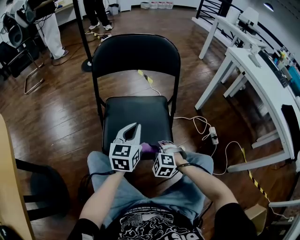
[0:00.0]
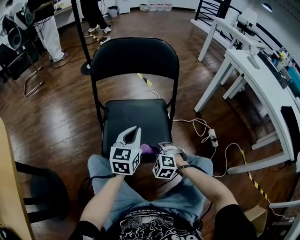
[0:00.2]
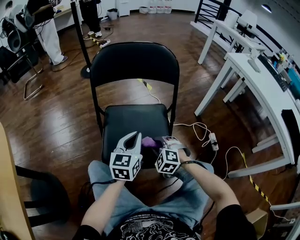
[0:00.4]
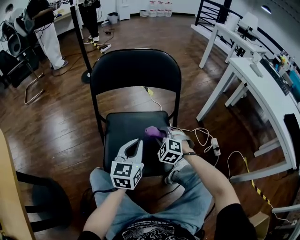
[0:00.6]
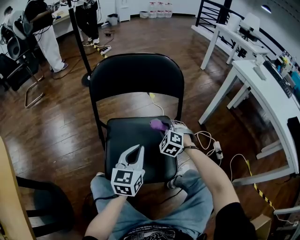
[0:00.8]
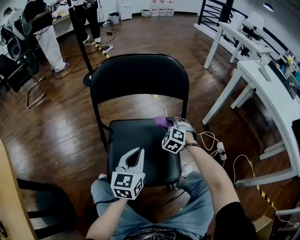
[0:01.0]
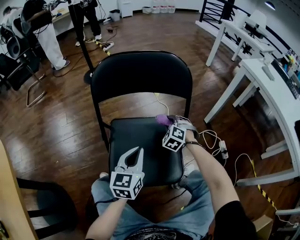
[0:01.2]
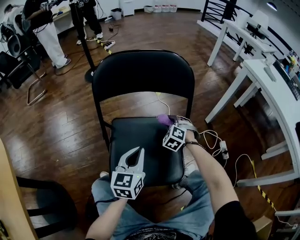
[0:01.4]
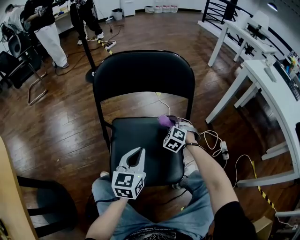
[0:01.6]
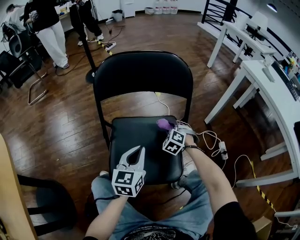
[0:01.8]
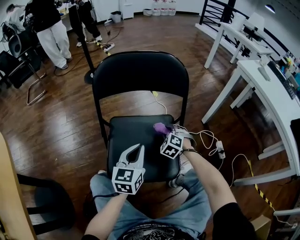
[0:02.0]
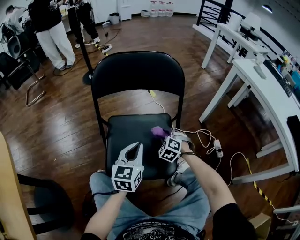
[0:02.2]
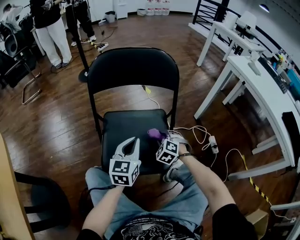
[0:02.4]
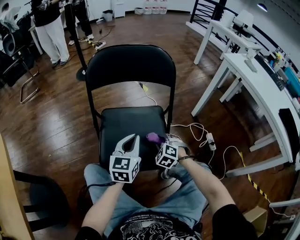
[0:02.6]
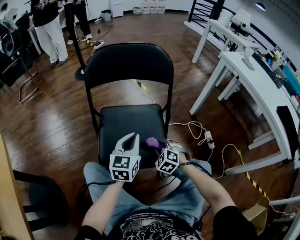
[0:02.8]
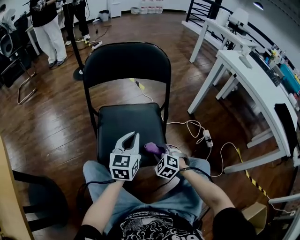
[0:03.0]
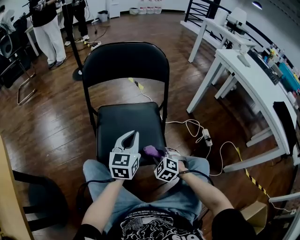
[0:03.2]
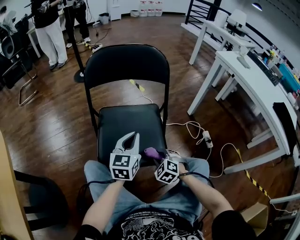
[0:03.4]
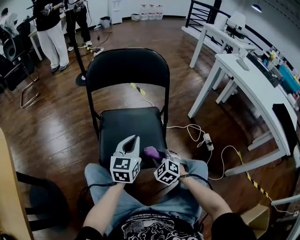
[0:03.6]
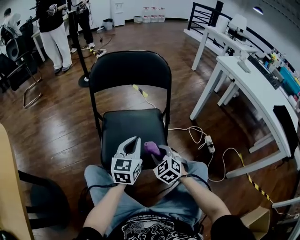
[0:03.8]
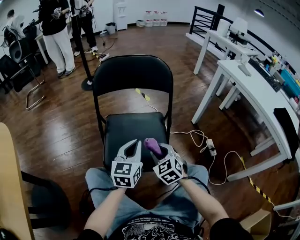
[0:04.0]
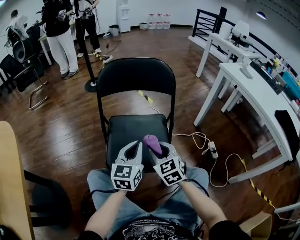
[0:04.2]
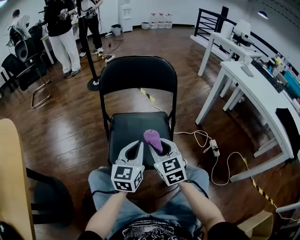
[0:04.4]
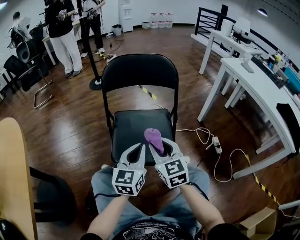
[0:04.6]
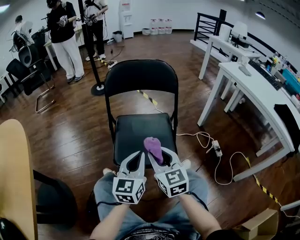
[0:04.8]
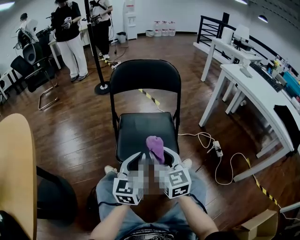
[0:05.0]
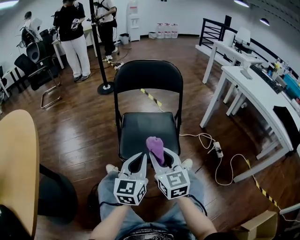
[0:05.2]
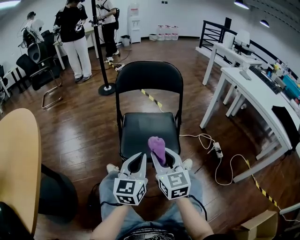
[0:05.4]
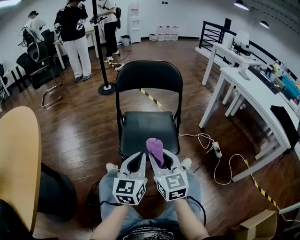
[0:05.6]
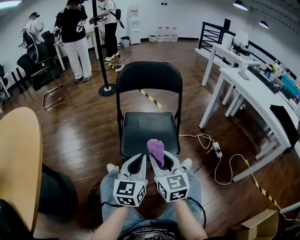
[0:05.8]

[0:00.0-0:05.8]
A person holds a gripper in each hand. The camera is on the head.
0:00.0 to 0:01.4: The left gripper moves about 5 cm, while the right gripper shifts about 30 cm forward, and turns by approximately 20 degrees.
0:01.4 to 0:02.8: The right gripper moves backward, approximately 20 cm. The left gripper changes place by roughly 5 cm.
0:02.8 to 0:04.4: The left gripper is displaced backward and upward by about 10 cm. Meanwhile the right gripper goes about 20 cm upward, and points its fingers about 30 degrees further upward.
0:04.4 to 0:05.8: The two grippers go roughly 15 cm backward.

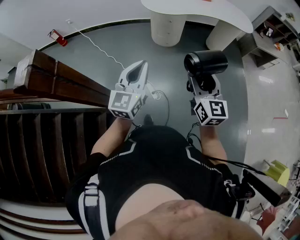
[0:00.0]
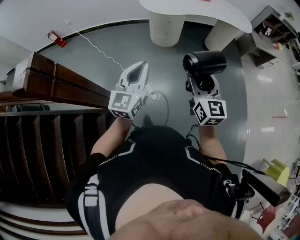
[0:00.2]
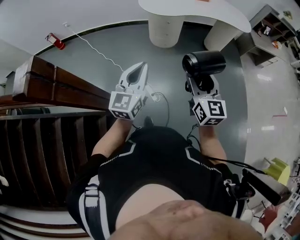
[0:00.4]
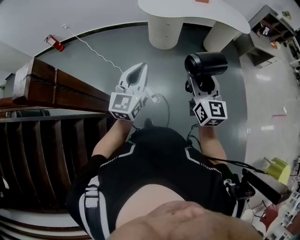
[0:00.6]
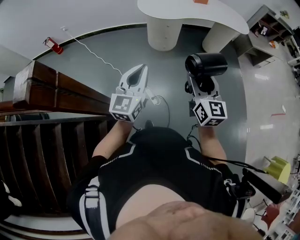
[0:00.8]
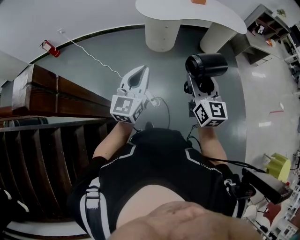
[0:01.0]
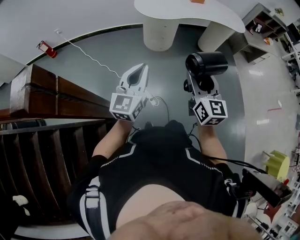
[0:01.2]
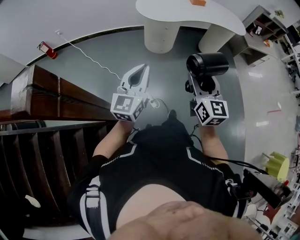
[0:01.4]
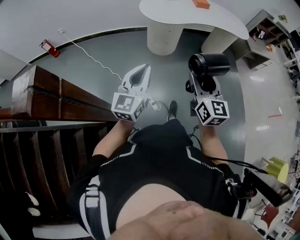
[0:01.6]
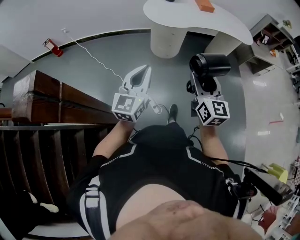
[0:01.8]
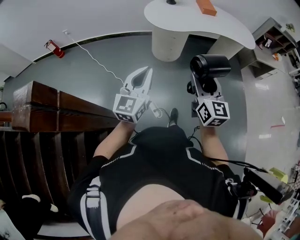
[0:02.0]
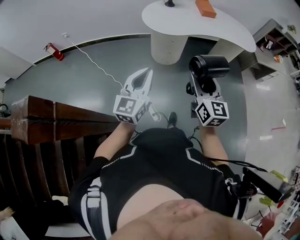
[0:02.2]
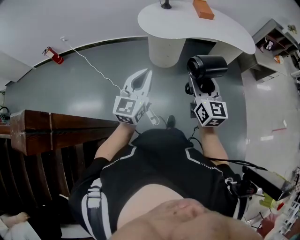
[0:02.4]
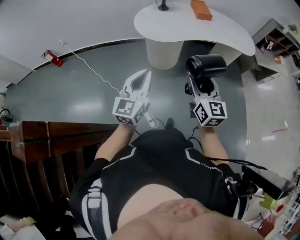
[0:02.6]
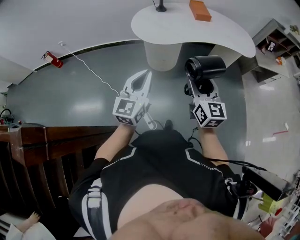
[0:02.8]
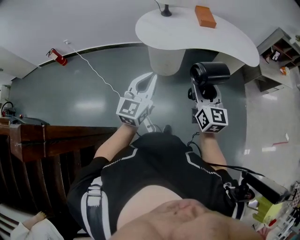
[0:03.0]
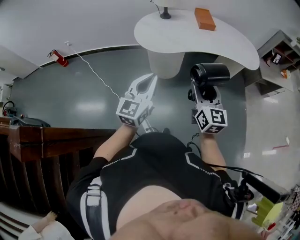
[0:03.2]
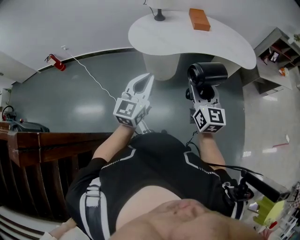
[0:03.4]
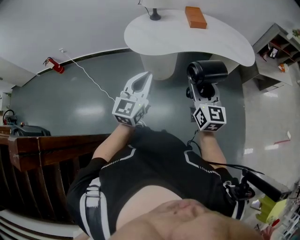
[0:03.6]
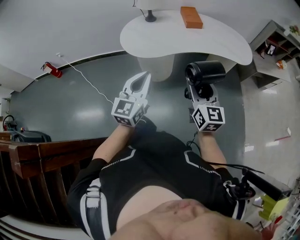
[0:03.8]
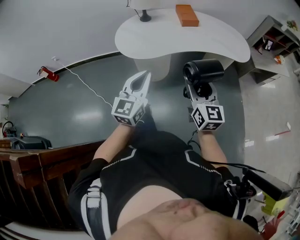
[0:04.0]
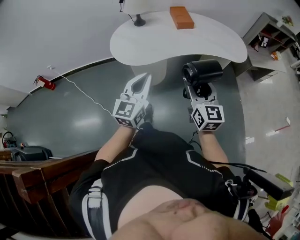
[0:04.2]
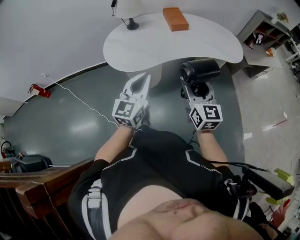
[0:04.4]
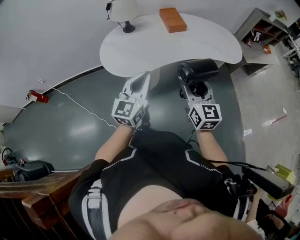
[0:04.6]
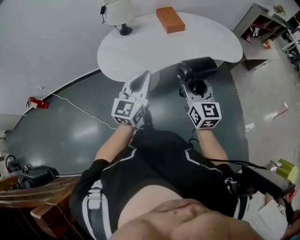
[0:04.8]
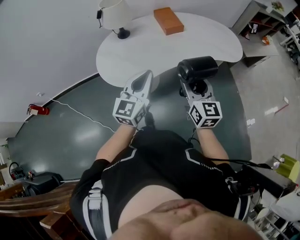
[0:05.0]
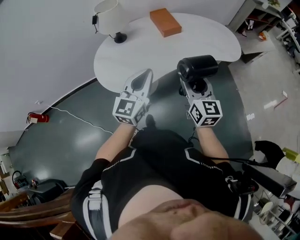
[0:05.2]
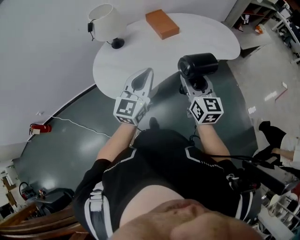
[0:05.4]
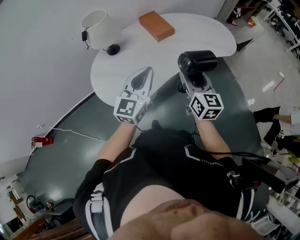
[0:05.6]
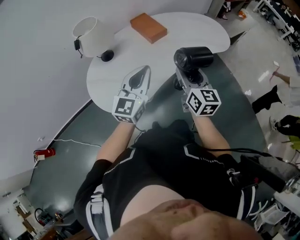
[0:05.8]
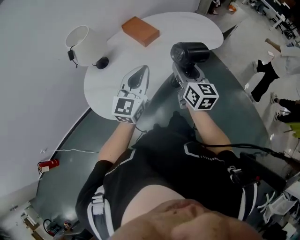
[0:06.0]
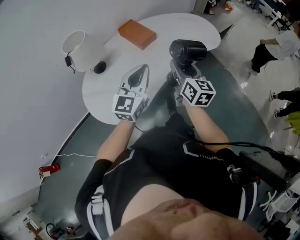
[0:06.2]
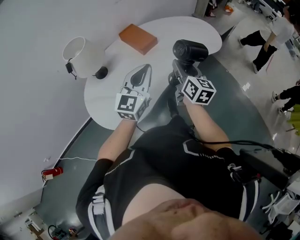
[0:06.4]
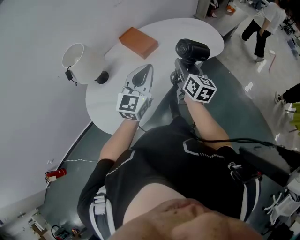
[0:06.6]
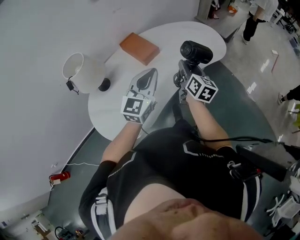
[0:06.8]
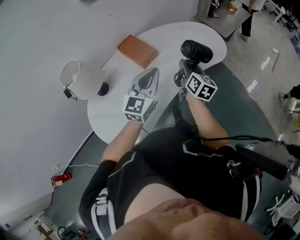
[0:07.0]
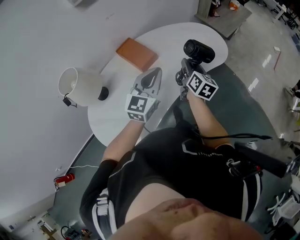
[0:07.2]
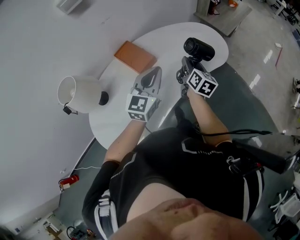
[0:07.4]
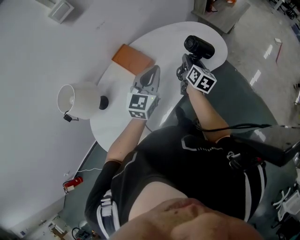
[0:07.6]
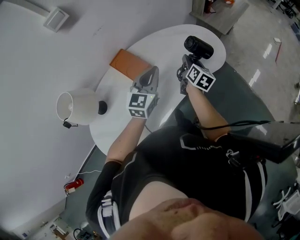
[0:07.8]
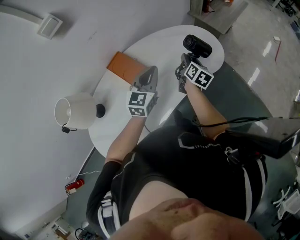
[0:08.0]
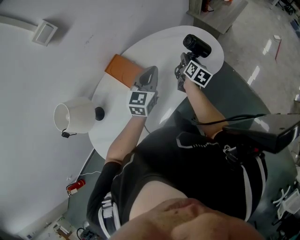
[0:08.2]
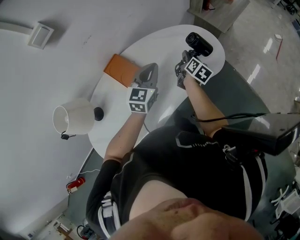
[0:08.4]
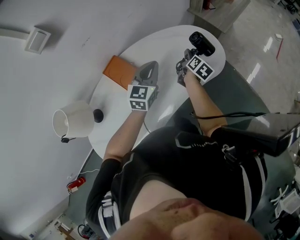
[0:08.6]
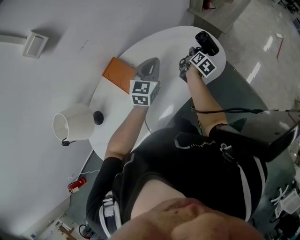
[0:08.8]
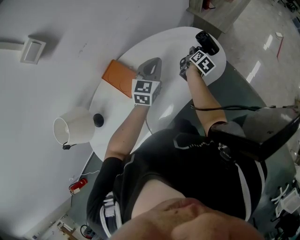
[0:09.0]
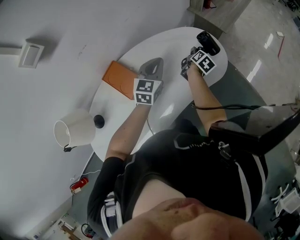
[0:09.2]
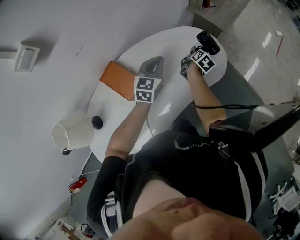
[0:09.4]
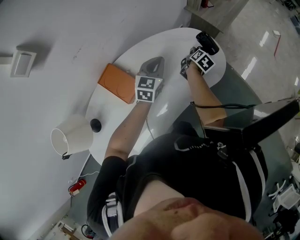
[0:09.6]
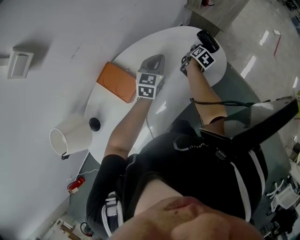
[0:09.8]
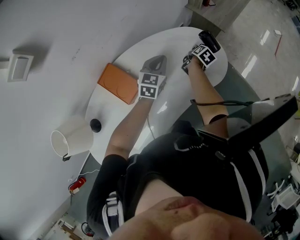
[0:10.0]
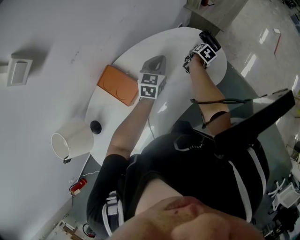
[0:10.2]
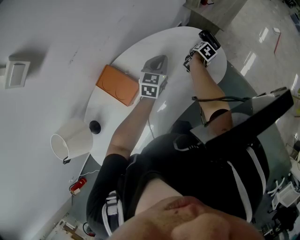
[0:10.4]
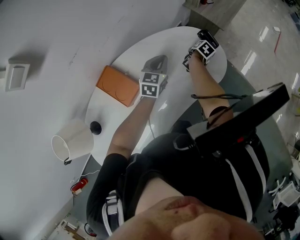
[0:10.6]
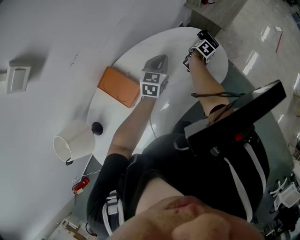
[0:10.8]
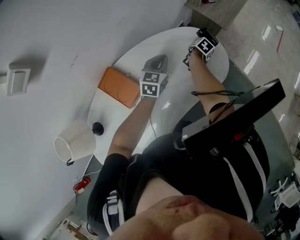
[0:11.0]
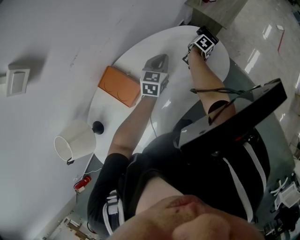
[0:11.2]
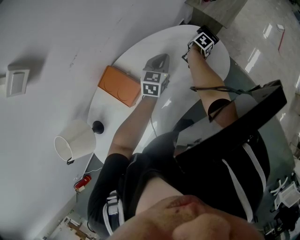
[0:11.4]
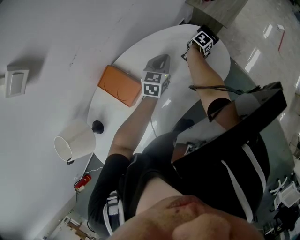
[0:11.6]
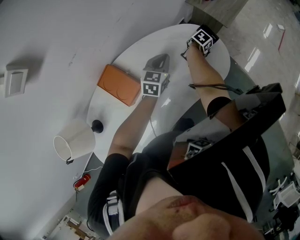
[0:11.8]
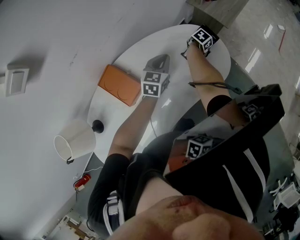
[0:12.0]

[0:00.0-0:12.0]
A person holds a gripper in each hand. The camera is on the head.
0:00.0 to 0:01.6: The two grippers go some 10 cm to the left and forward.
0:01.6 to 0:03.0: The two grippers go approximately 30 cm forward and to the right.
0:03.0 to 0:04.4: The two grippers go approximately 20 cm forward.
0:04.4 to 0:06.0: The right gripper changes place by approximately 25 cm, and swivels about 30 degrees; the left gripper moves about 25 cm, and rotates approximately 30 degrees.
0:06.0 to 0:07.6: Both grippers travel together forward, roughly 30 cm. The right gripper swivels approximately 30 degrees.
0:07.6 to 0:09.0: The right gripper is displaced forward and downward by roughly 20 cm, and changes its angle by approximately 30 degrees. The left gripper is displaced forward by some 20 cm.
0:09.0 to 0:10.4: The left gripper moves forward and downward, approximately 10 cm. Meanwhile the right gripper goes approximately 10 cm downward and forward.
0:10.4 to 0:12.0: The grippers stay close to where they were, moving slightly.

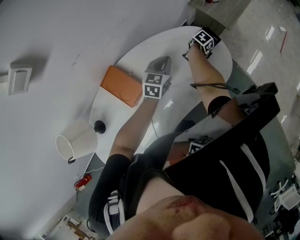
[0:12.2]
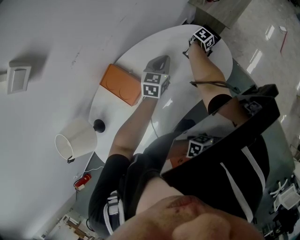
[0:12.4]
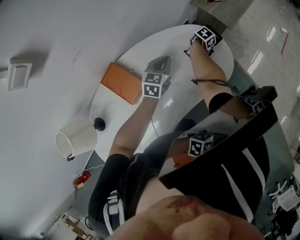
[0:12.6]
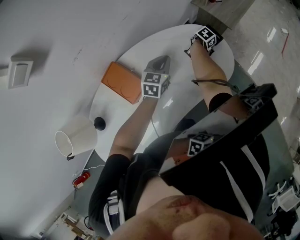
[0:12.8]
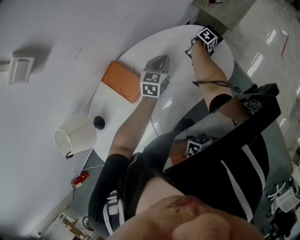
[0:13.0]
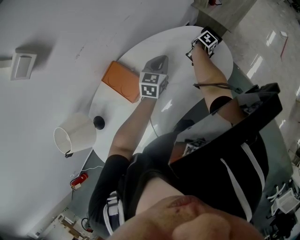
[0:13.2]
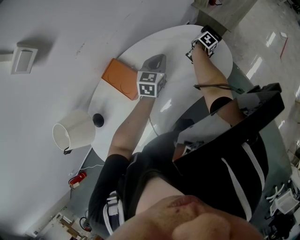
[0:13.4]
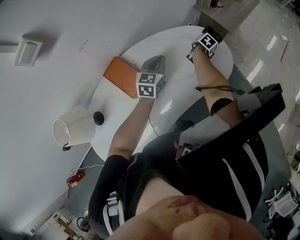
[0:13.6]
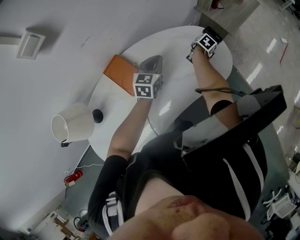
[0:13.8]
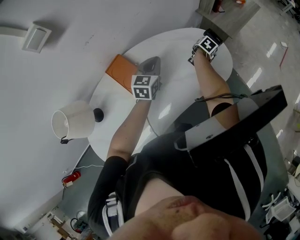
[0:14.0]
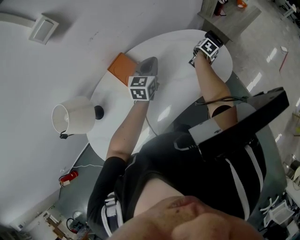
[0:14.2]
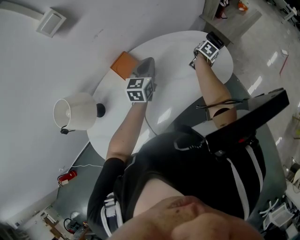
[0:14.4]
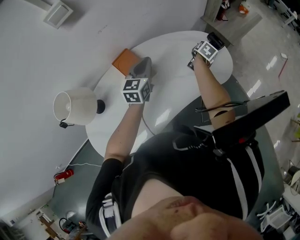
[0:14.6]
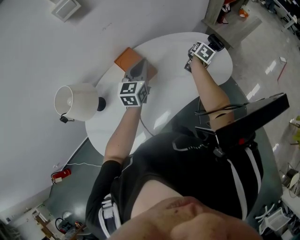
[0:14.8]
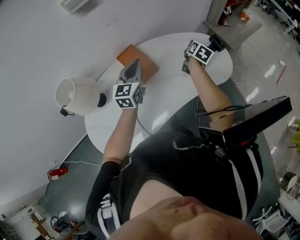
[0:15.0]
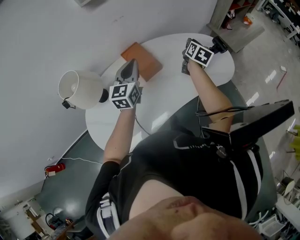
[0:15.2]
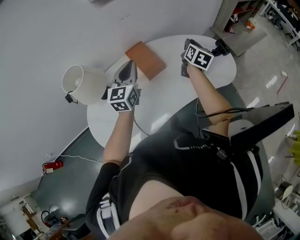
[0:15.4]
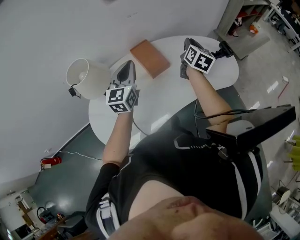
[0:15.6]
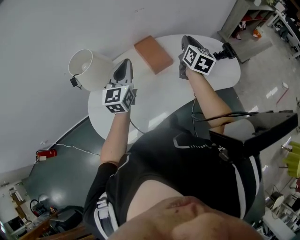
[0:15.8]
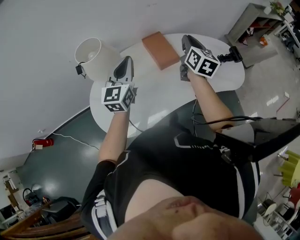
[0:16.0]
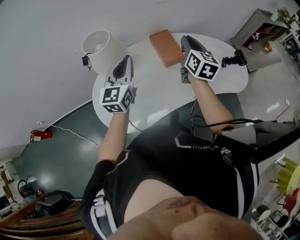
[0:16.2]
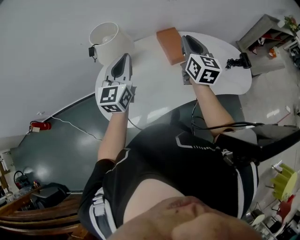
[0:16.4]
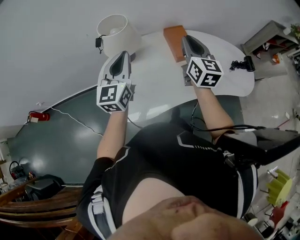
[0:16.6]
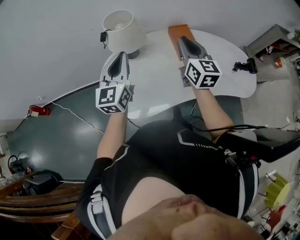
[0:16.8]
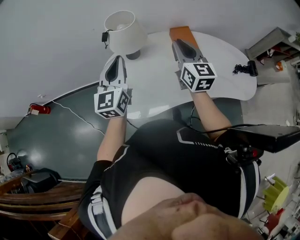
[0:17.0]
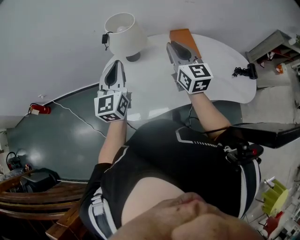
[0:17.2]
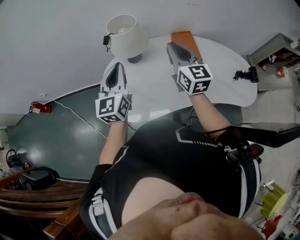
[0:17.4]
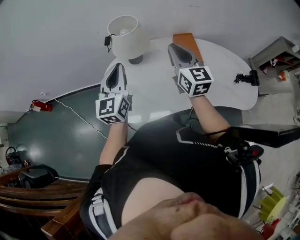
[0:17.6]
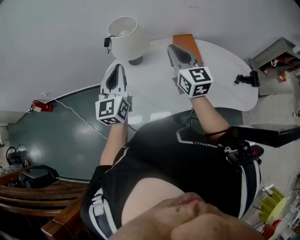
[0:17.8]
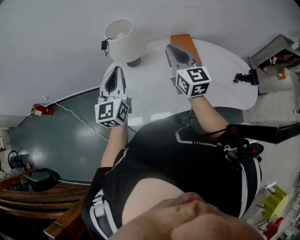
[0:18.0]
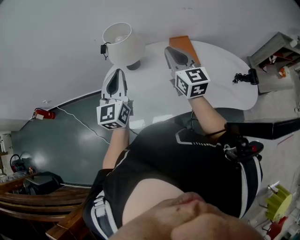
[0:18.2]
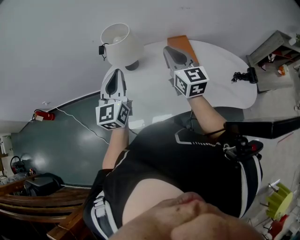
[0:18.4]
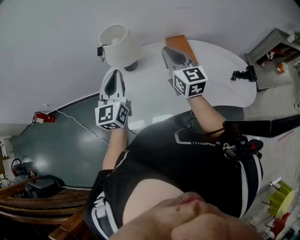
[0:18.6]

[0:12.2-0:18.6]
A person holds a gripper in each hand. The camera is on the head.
0:12.2 to 0:13.8: The left gripper shifts roughly 5 cm backward, while the right gripper moves roughly 5 cm.
0:13.8 to 0:15.4: The left gripper changes place by approximately 30 cm, and rotates roughly 30 degrees, while the right gripper shifts by some 35 cm, points its fingers roughly 30 degrees further upward, and closes its fingers.
0:15.4 to 0:17.0: The left gripper changes place by about 30 cm, and turns by some 30 degrees; the right gripper shifts by some 35 cm, and rotates some 50 degrees.
0:17.0 to 0:18.6: The grippers stay close to where they were, moving slightly.
